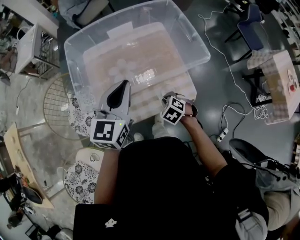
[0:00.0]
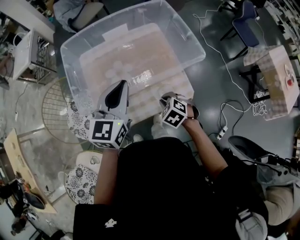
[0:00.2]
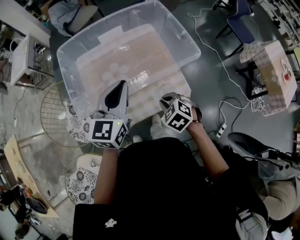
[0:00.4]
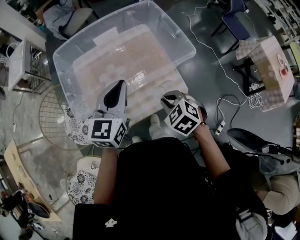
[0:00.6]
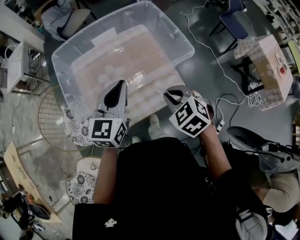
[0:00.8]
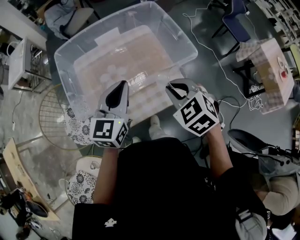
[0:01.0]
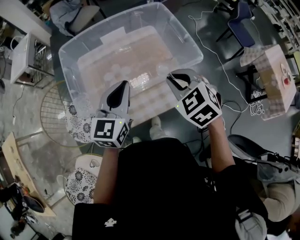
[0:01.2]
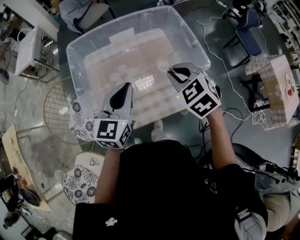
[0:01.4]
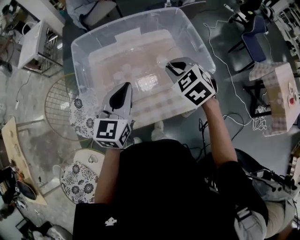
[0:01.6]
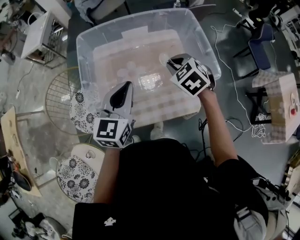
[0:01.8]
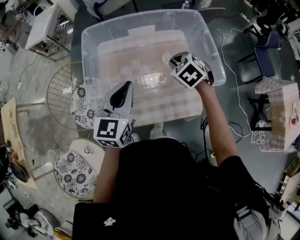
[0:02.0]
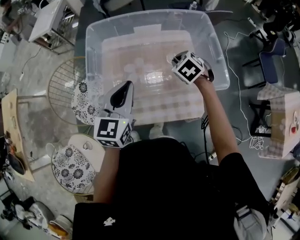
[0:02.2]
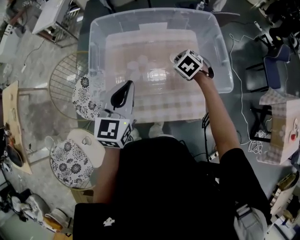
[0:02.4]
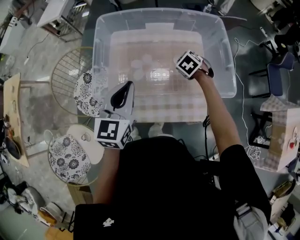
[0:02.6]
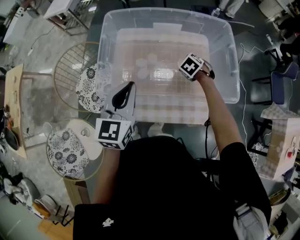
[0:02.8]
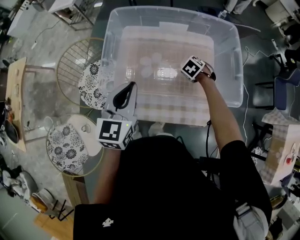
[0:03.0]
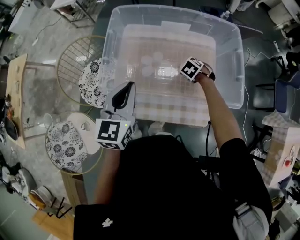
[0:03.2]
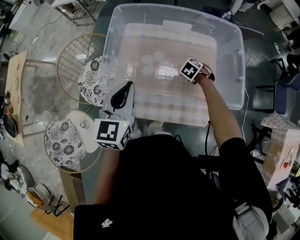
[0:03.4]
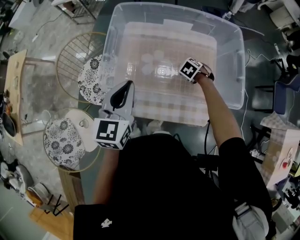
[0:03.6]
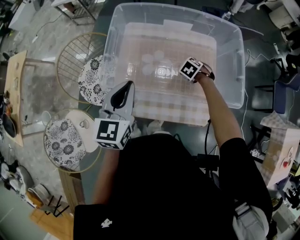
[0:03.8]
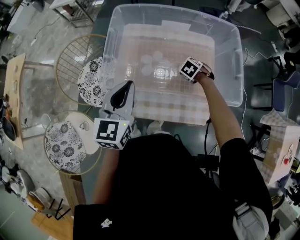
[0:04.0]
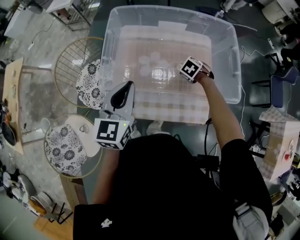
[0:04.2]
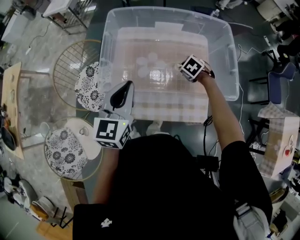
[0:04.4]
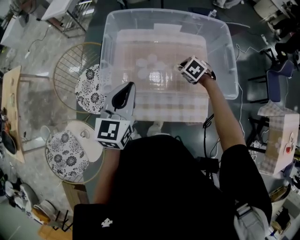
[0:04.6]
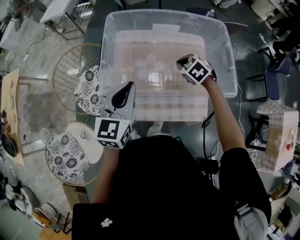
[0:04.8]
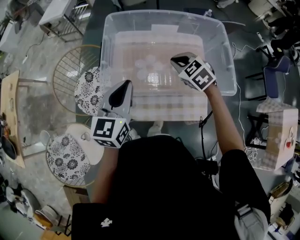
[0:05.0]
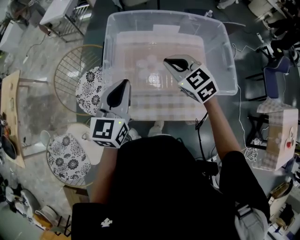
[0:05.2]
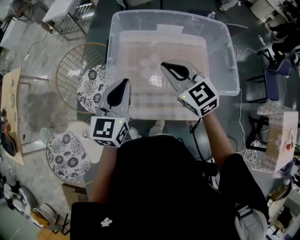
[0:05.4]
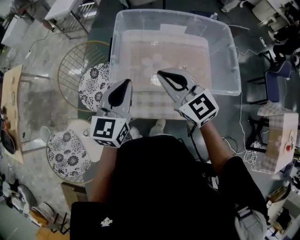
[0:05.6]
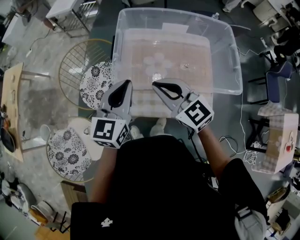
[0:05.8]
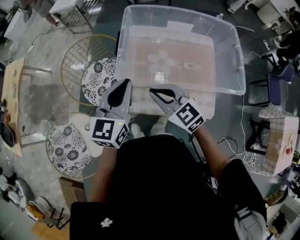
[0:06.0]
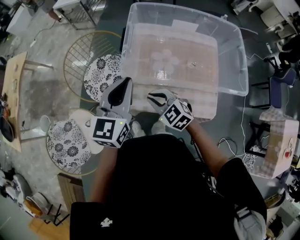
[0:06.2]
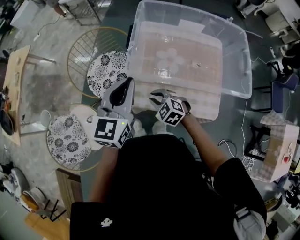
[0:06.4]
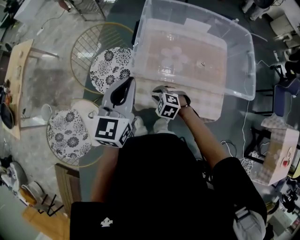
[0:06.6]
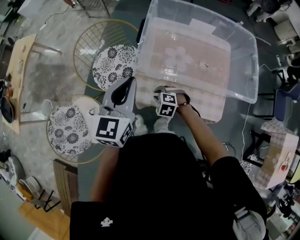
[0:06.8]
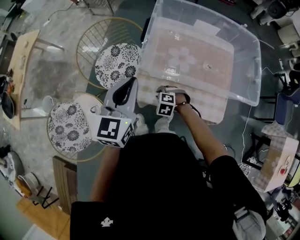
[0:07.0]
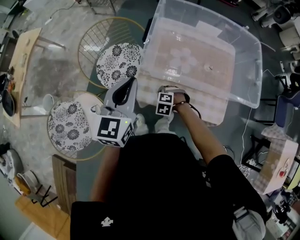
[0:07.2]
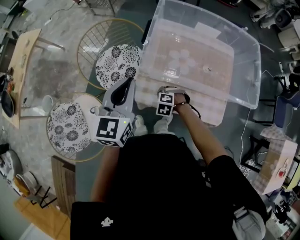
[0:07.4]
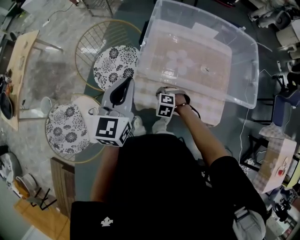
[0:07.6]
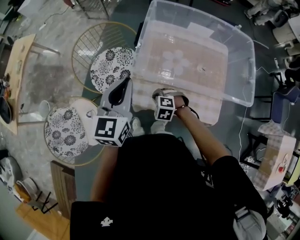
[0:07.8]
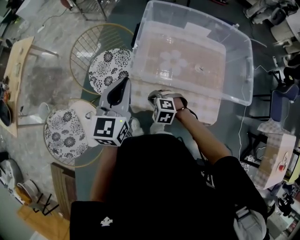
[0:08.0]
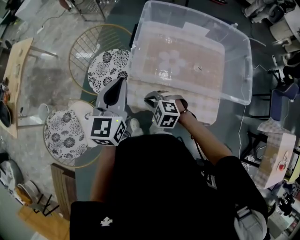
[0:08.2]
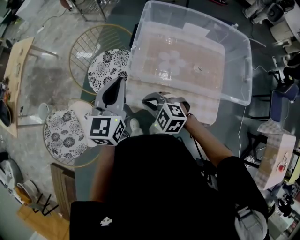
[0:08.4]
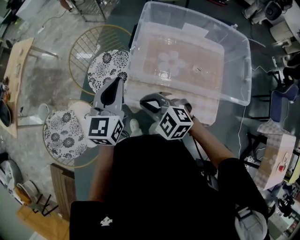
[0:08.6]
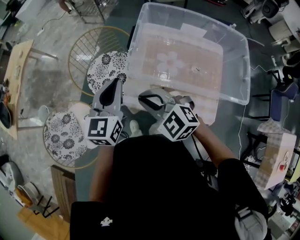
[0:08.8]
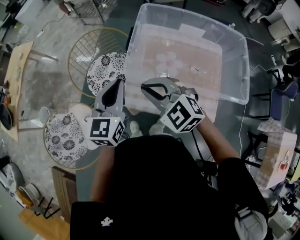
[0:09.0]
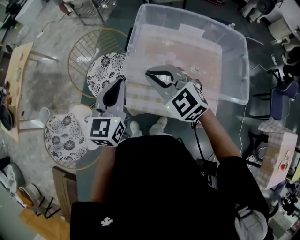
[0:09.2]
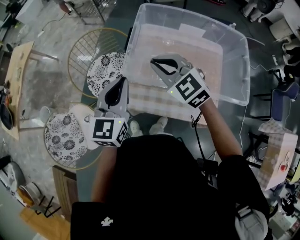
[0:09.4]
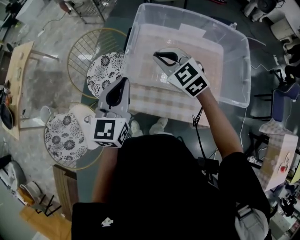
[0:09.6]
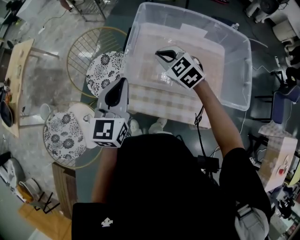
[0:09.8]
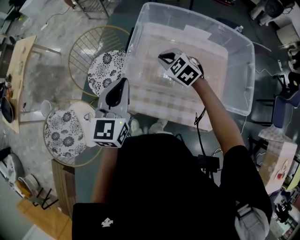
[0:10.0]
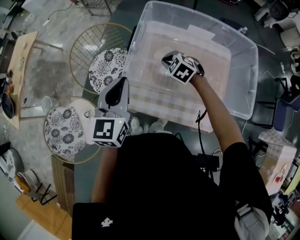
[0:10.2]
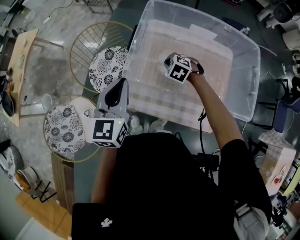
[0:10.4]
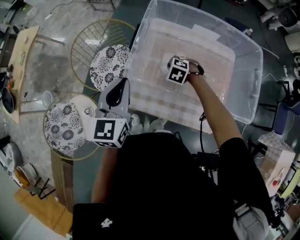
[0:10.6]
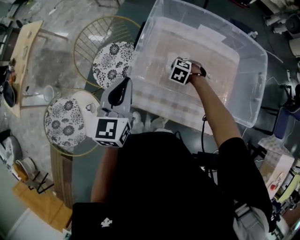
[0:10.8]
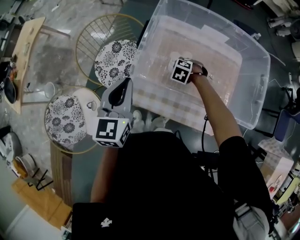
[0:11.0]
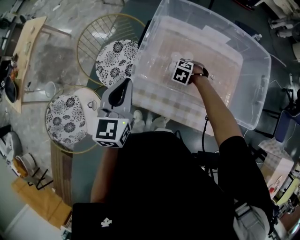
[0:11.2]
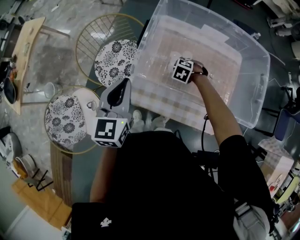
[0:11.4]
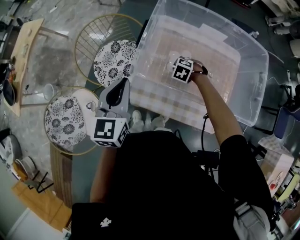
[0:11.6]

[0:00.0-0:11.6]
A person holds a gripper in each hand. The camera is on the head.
0:00.0 to 0:01.4: The right gripper travels upward by some 25 cm, and changes its angle by about 20 degrees.
0:01.4 to 0:02.8: The left gripper goes roughly 10 cm to the left, and changes its angle by some 20 degrees, while the right gripper moves downward and forward, some 30 cm, and changes its angle by about 30 degrees.
0:04.4 to 0:05.8: The right gripper goes some 25 cm upward, and points its fingers roughly 60 degrees further upward; the left gripper ends up about 5 cm from where it was.
0:05.8 to 0:07.2: The left gripper shifts by about 10 cm. The right gripper travels downward by about 35 cm, and angles its fingers downward, by roughly 60 degrees.
0:07.2 to 0:08.8: The right gripper is displaced upward by about 30 cm, and tips its fingers upward by roughly 40 degrees.
0:08.8 to 0:10.2: The right gripper goes about 30 cm forward, to the right and downward, and turns by about 30 degrees. The left gripper moves about 5 cm.
0:10.2 to 0:11.6: The right gripper heads downward, covering about 10 cm, and turns by approximately 20 degrees.

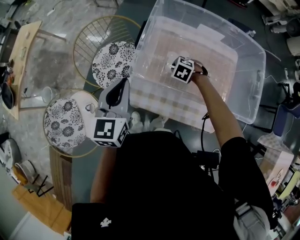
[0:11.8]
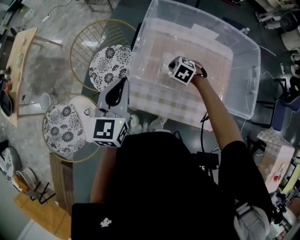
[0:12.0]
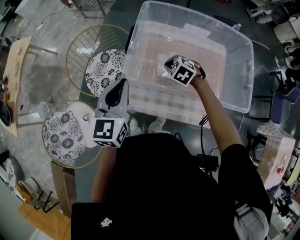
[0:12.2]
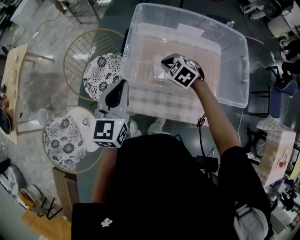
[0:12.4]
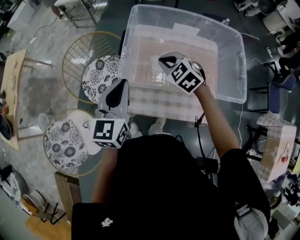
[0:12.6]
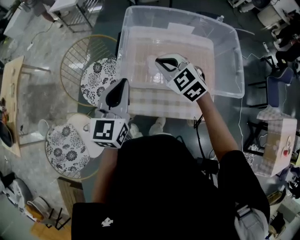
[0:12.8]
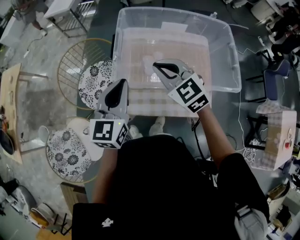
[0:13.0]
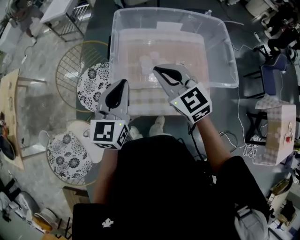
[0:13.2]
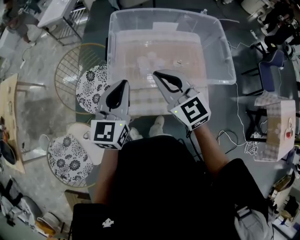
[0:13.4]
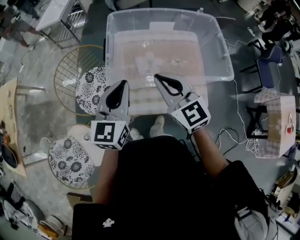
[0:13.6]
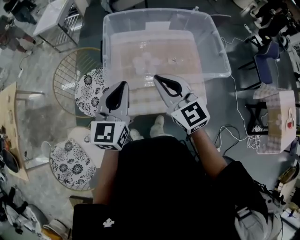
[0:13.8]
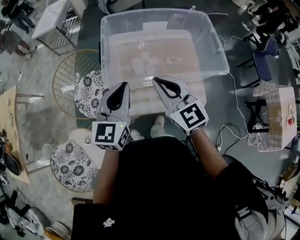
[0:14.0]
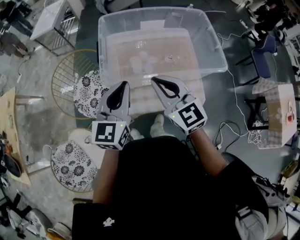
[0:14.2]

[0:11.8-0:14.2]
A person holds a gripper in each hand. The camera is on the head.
0:11.8 to 0:13.0: The right gripper is displaced upward by about 30 cm, and tips its fingers upward by some 50 degrees. Meanwhile the left gripper shifts by roughly 5 cm.
0:13.0 to 0:14.2: The left gripper moves roughly 5 cm; the right gripper is displaced backward by approximately 10 cm, and changes its angle by some 30 degrees.

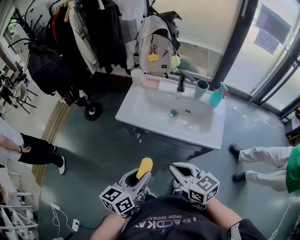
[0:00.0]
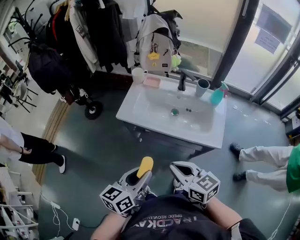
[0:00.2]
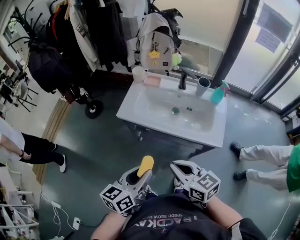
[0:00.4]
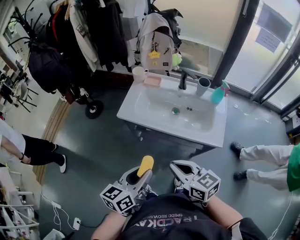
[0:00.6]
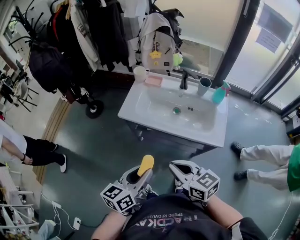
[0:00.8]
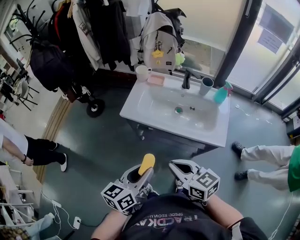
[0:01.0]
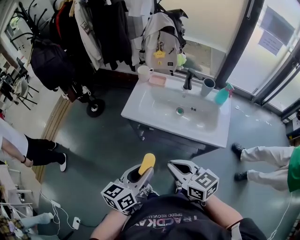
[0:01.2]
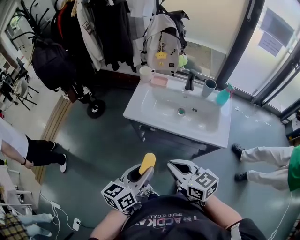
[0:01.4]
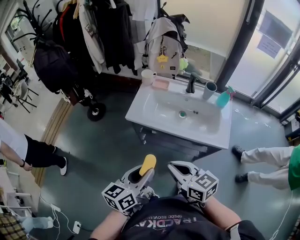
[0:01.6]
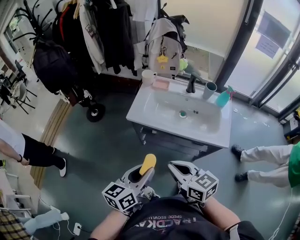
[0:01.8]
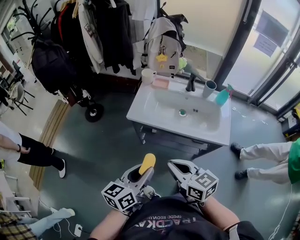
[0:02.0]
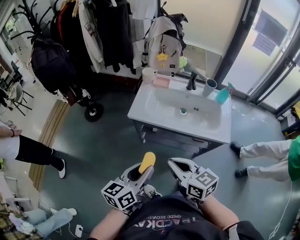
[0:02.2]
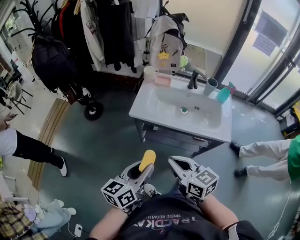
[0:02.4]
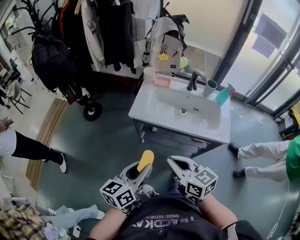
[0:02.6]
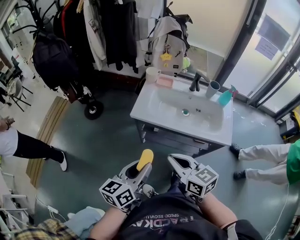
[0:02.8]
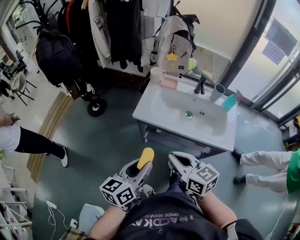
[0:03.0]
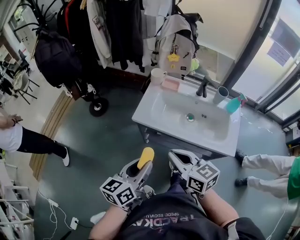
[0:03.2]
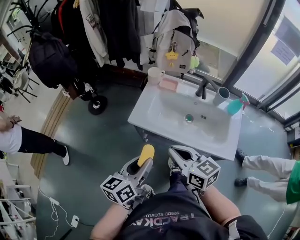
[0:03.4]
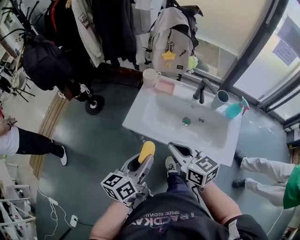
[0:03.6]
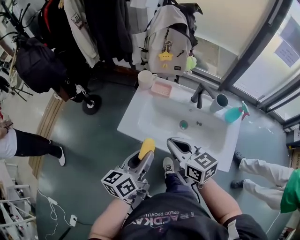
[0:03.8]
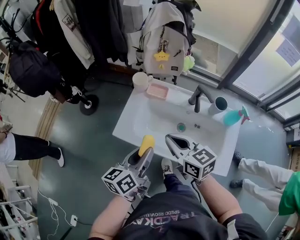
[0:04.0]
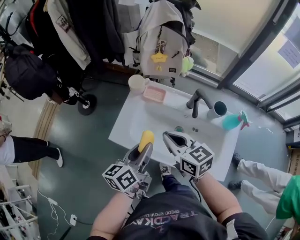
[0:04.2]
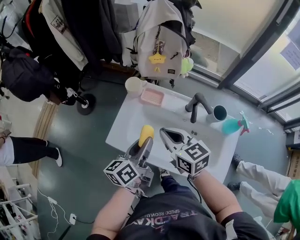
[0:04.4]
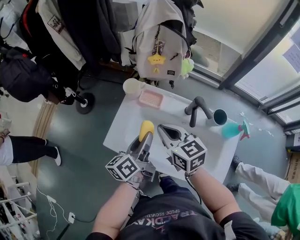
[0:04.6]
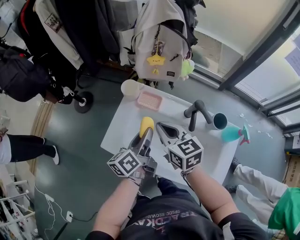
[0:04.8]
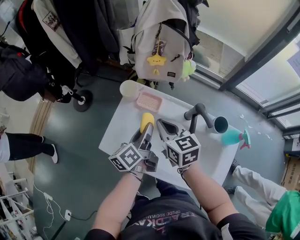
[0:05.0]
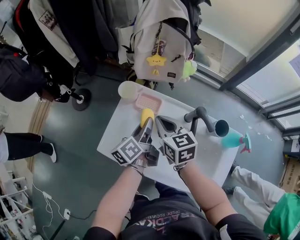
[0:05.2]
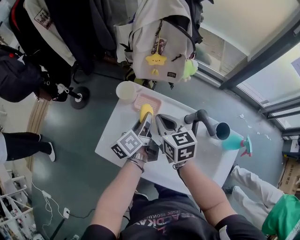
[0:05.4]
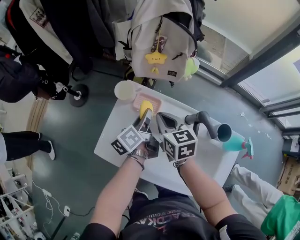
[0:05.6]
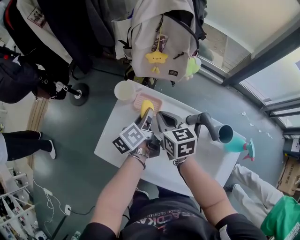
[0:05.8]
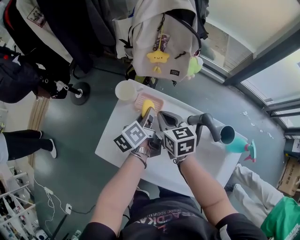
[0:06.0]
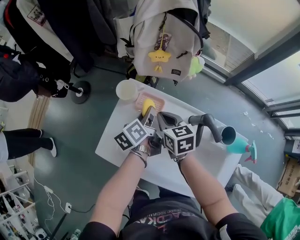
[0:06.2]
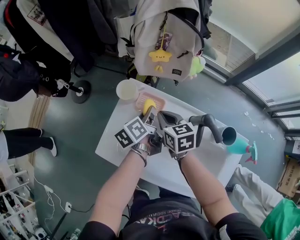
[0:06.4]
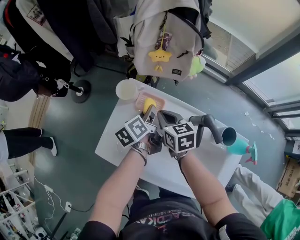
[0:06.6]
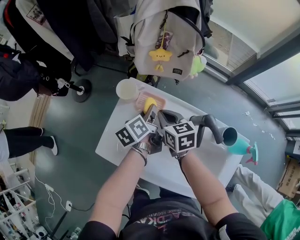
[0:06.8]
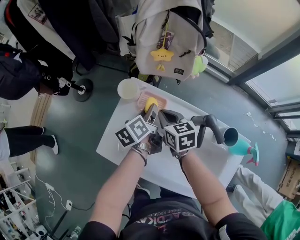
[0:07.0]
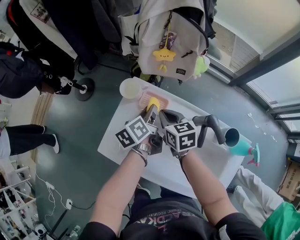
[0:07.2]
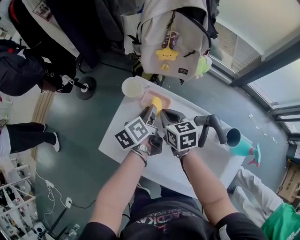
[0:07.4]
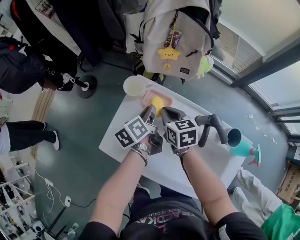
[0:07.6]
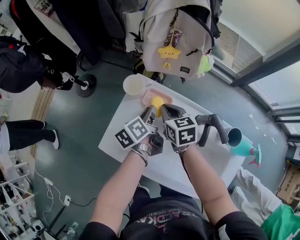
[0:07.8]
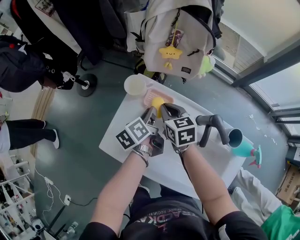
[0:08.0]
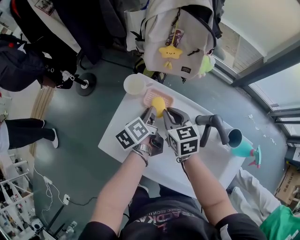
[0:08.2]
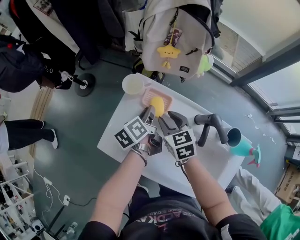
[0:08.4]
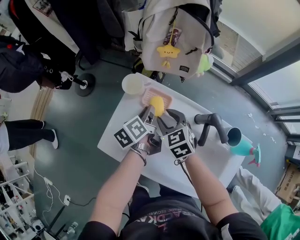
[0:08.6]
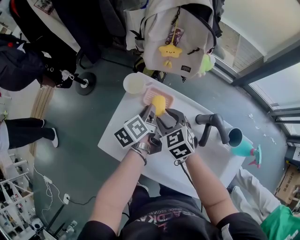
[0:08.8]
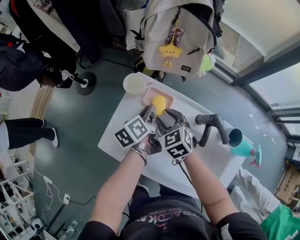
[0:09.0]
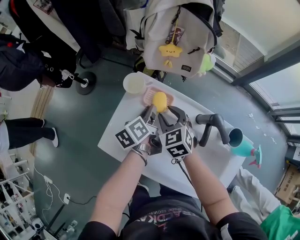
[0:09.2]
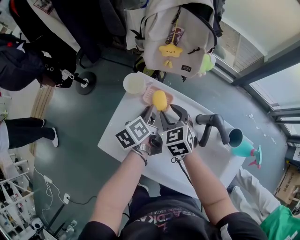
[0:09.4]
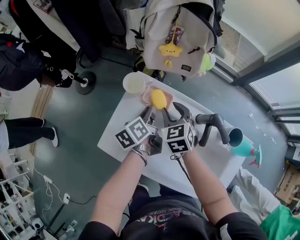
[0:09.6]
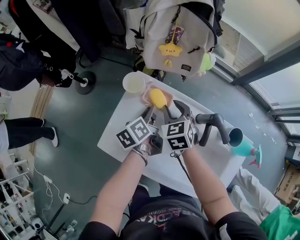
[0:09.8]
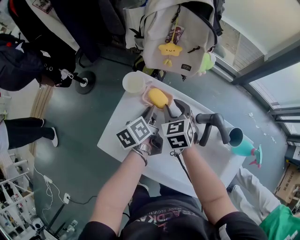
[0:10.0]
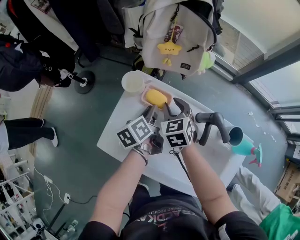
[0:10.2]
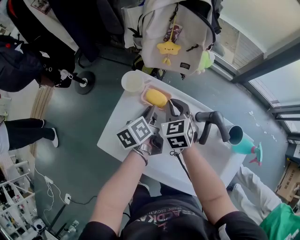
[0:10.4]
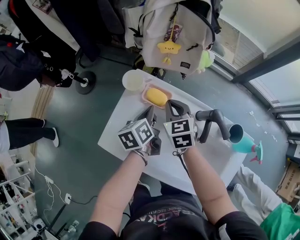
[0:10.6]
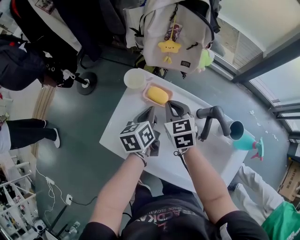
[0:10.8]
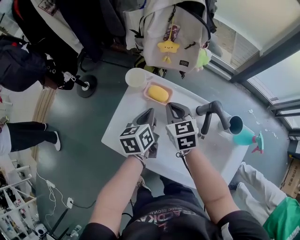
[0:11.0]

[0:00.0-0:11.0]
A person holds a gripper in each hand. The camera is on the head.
0:00.0 to 0:01.6: The two grippers go approximately 5 cm to the left.
0:01.6 to 0:03.2: The left gripper travels forward and to the left by approximately 10 cm. Meanwhile the right gripper shifts some 10 cm forward.
0:03.2 to 0:04.8: Both grippers travel together forward and to the right, about 35 cm. The left gripper rotates roughly 30 degrees.
0:04.8 to 0:06.2: The left gripper heads forward and downward, covering roughly 15 cm, while the right gripper goes roughly 15 cm downward and forward.
0:06.2 to 0:07.8: The grippers make only small movements.
0:07.8 to 0:09.4: The right gripper turns by approximately 30 degrees, and opens its fingers.
0:09.4 to 0:11.0: The right gripper closes, while the left gripper changes place by roughly 5 cm, rotates approximately 20 degrees, and closes up.
